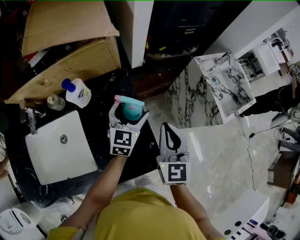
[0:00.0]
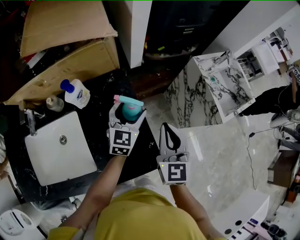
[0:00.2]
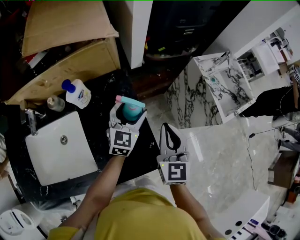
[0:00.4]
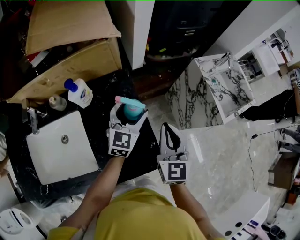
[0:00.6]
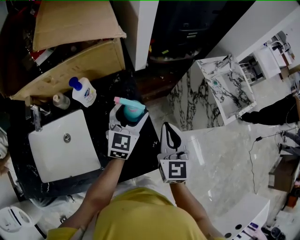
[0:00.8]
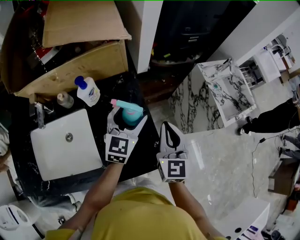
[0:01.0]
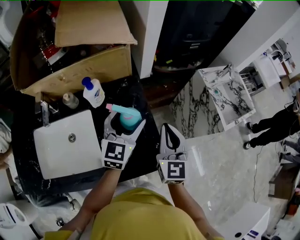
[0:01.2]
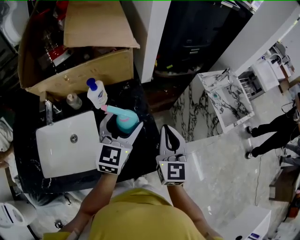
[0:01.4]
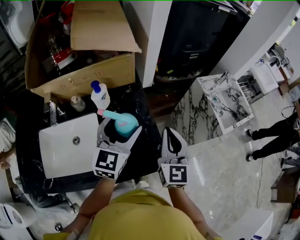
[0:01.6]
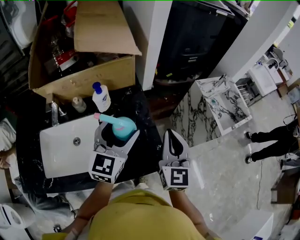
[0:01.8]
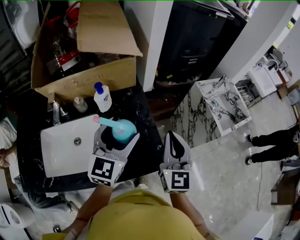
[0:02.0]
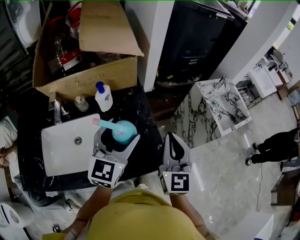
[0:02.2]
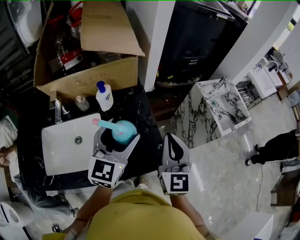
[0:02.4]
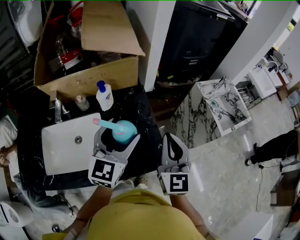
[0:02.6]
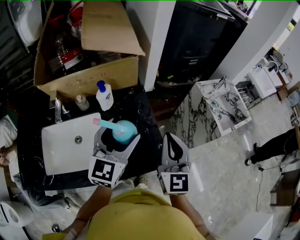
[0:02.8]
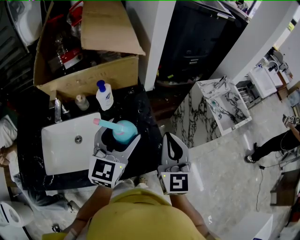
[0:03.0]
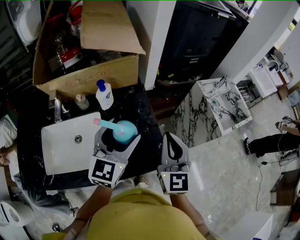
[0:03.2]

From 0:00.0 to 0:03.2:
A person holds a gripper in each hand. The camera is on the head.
From 0:00.0 to 0:01.6: The right gripper shifts approximately 5 cm upward, while the left gripper moves upward, backward and to the left, approximately 20 cm.
From 0:01.6 to 0:03.2: The right gripper ends up approximately 5 cm from where it was. The left gripper is displaced backward by some 5 cm.

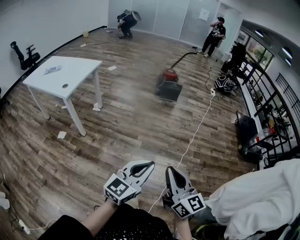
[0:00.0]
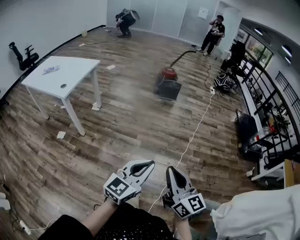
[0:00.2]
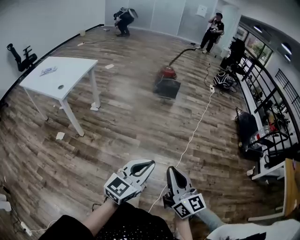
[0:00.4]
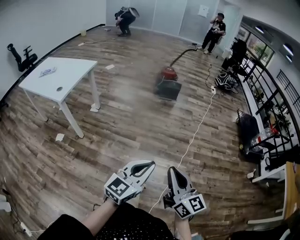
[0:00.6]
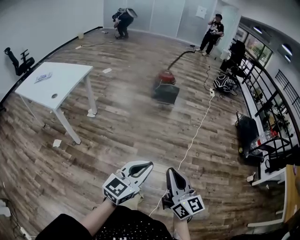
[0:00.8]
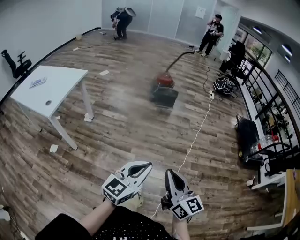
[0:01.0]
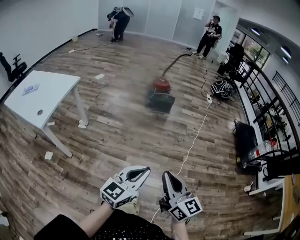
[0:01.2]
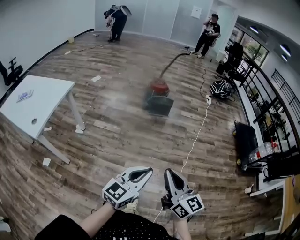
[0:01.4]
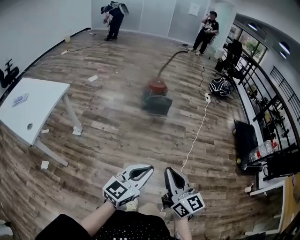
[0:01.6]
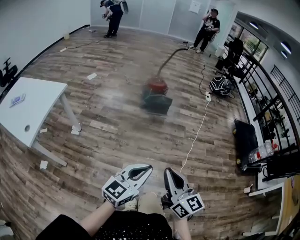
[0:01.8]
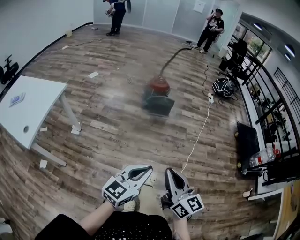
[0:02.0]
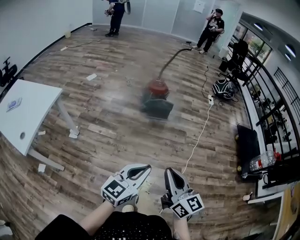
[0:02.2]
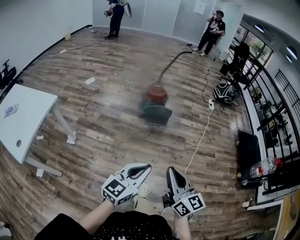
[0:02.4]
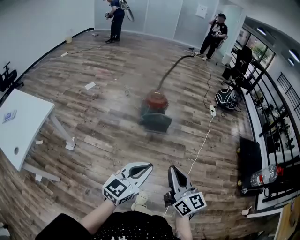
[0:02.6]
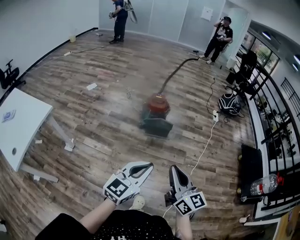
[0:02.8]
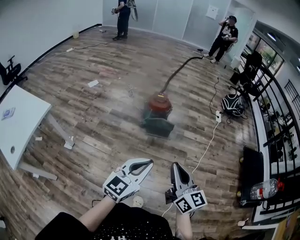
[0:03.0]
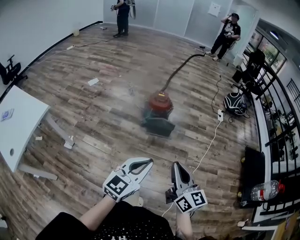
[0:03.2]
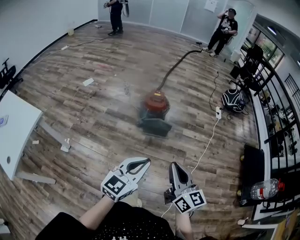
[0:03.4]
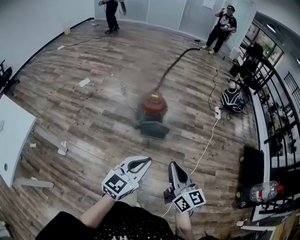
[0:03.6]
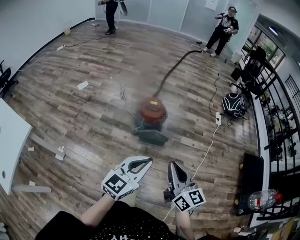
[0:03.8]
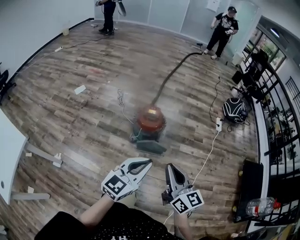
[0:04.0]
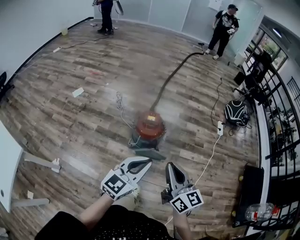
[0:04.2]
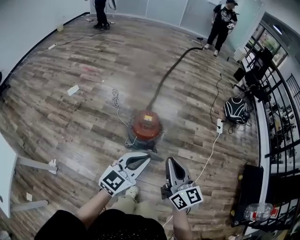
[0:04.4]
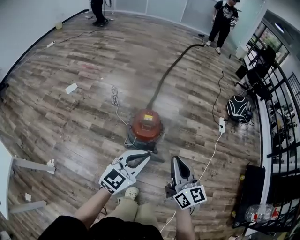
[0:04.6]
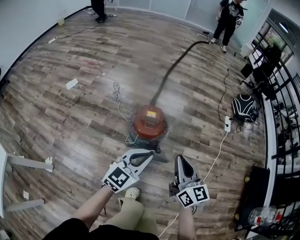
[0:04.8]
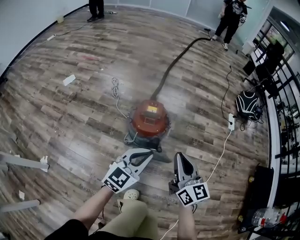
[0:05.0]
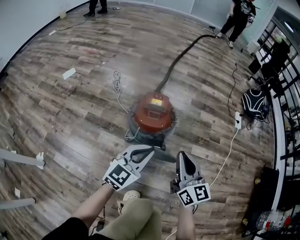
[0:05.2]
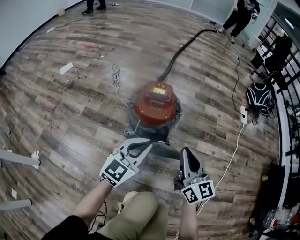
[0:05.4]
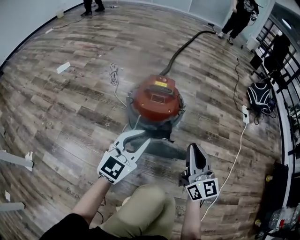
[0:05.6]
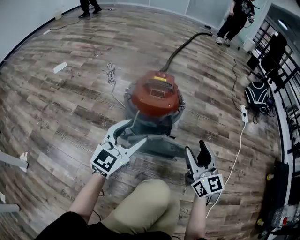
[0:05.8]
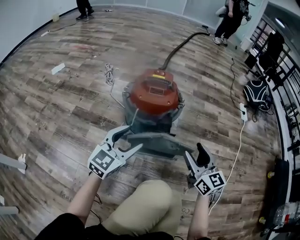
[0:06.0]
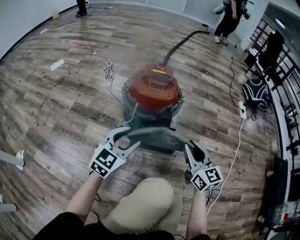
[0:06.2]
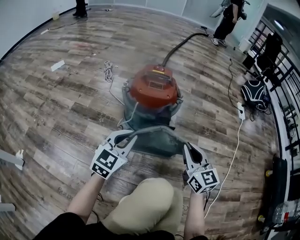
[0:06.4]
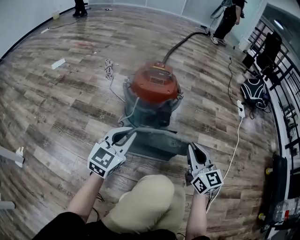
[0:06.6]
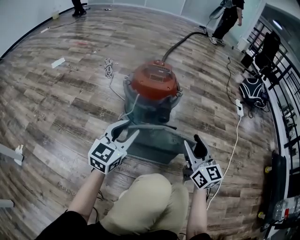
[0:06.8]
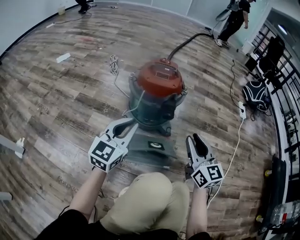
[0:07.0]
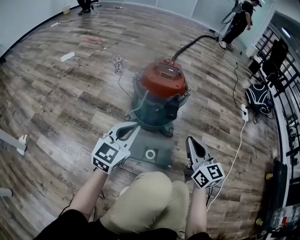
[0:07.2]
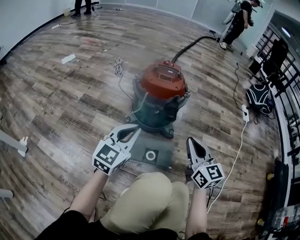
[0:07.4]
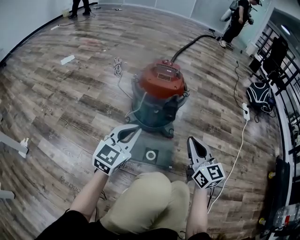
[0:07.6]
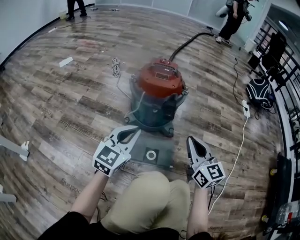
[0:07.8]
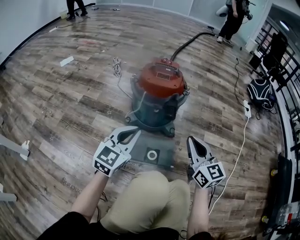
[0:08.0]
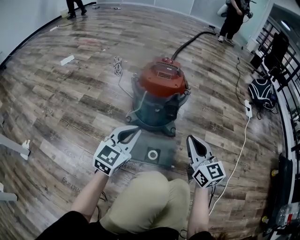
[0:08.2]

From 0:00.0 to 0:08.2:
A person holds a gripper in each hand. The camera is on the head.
From 0:00.0 to 0:01.6: Both grippers move forward, about 40 cm.
From 0:01.6 to 0:03.2: The two grippers travel together, forward, some 40 cm.
From 0:03.2 to 0:05.0: The two grippers travel together, forward, about 50 cm. The grippers both shift downward by about 20 cm.
From 0:05.0 to 0:06.6: The two grippers go approximately 30 cm downward. The right gripper opens, then closes once more. Meanwhile the left gripper opens, then closes again.
From 0:06.6 to 0:08.2: The right gripper opens, then closes once more.

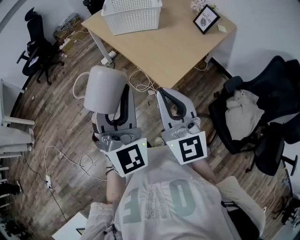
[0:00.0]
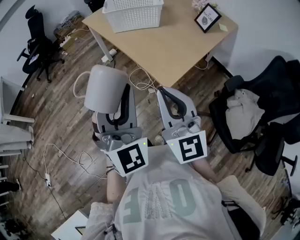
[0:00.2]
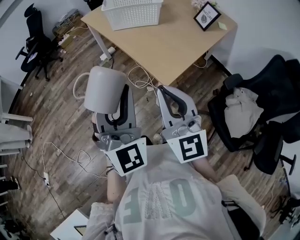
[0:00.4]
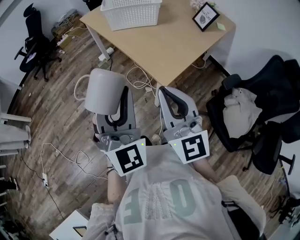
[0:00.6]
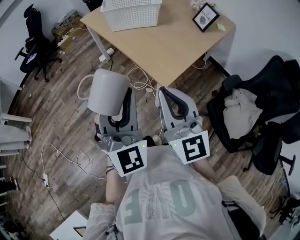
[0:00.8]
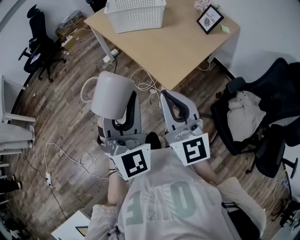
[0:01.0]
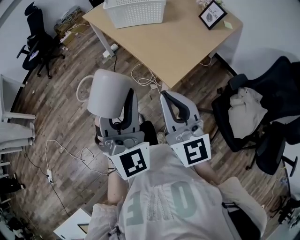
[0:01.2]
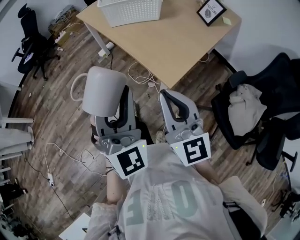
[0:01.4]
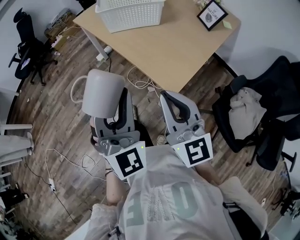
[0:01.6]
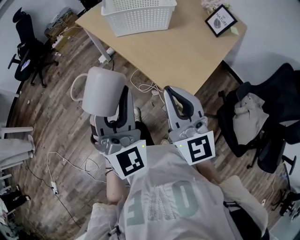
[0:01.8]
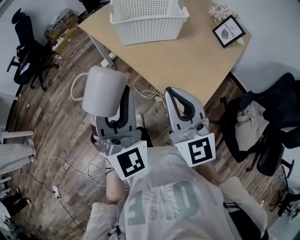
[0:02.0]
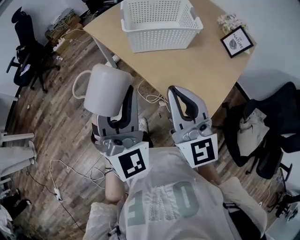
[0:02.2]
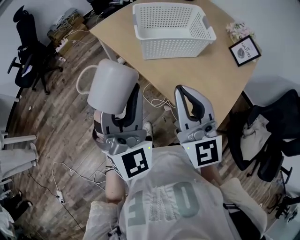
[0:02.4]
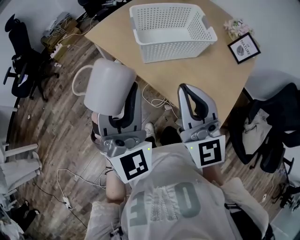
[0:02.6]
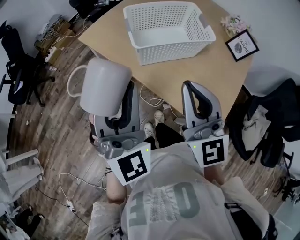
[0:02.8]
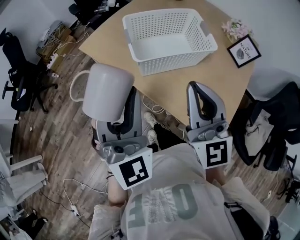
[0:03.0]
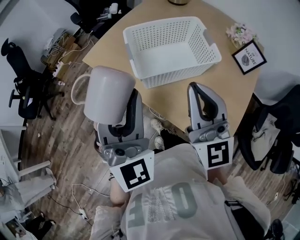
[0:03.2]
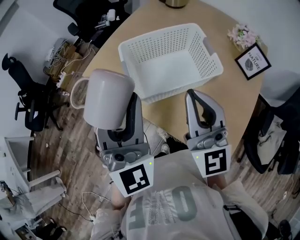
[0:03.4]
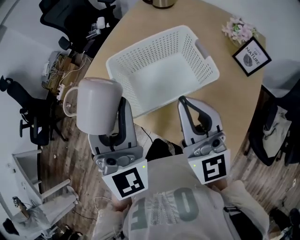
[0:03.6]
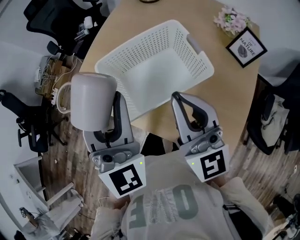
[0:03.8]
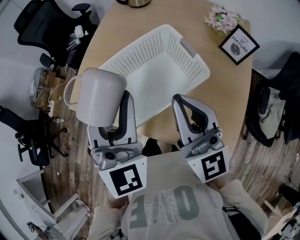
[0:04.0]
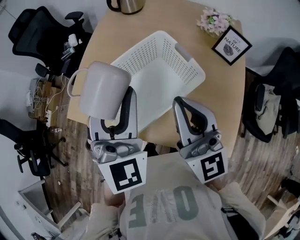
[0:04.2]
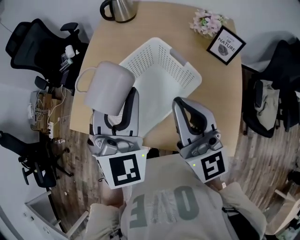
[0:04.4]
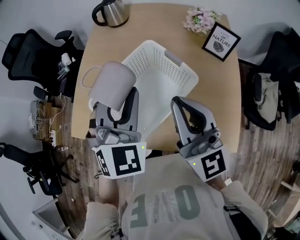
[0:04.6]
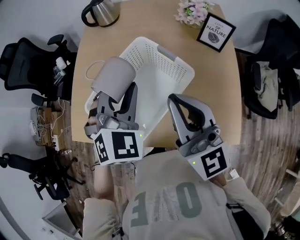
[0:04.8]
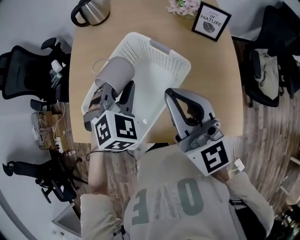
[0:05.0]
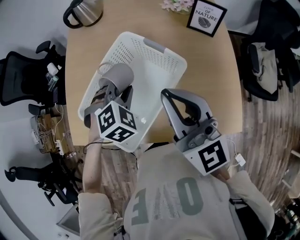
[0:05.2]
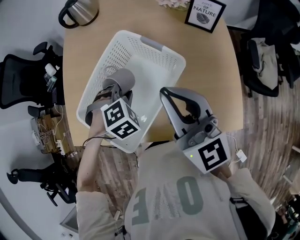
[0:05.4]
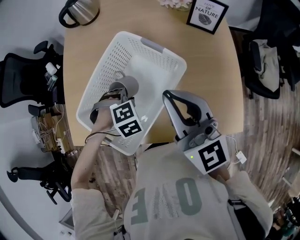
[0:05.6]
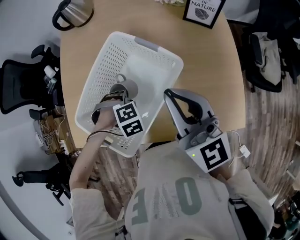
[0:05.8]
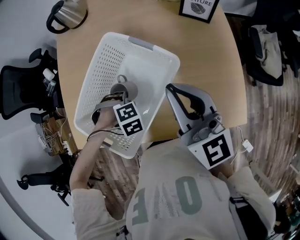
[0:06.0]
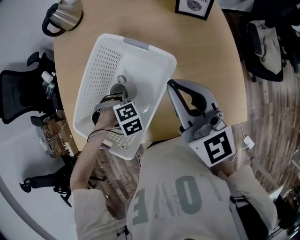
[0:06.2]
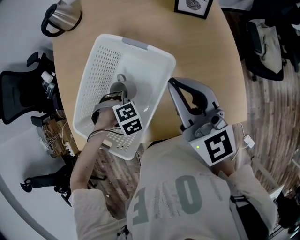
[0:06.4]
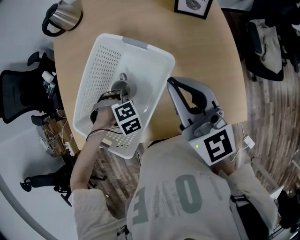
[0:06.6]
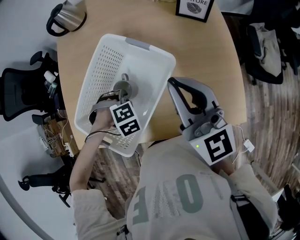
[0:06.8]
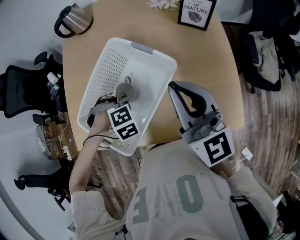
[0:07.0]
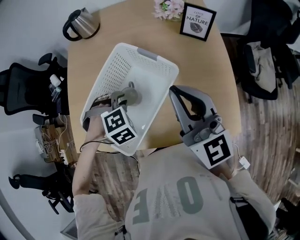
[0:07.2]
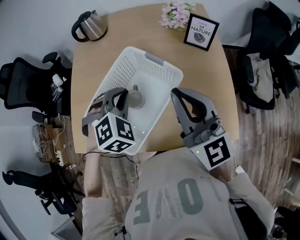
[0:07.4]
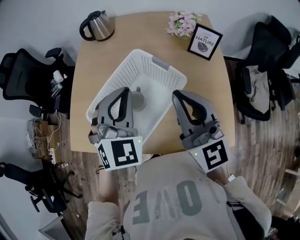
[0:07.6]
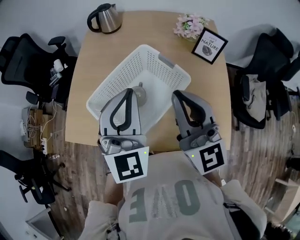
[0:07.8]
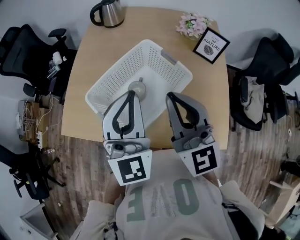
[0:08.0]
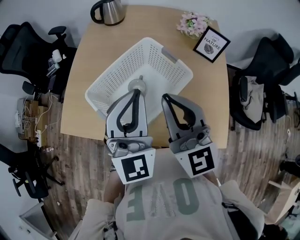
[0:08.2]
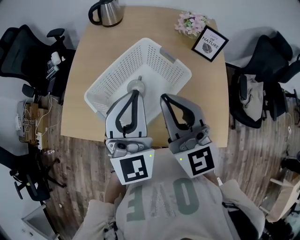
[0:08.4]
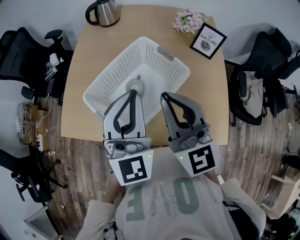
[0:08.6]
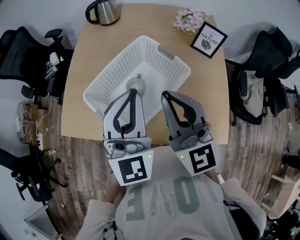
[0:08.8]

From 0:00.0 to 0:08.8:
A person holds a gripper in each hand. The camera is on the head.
From 0:00.0 to 0:01.4: The grippers make only small movements.
From 0:01.4 to 0:03.0: The two grippers travel together, forward, approximately 40 cm.
From 0:03.0 to 0:04.4: The left gripper changes place by approximately 30 cm, and swivels some 30 degrees, while the right gripper shifts by approximately 20 cm, and swivels roughly 20 degrees.
From 0:04.4 to 0:05.8: The left gripper moves downward, approximately 35 cm, and angles its fingers downward, by some 70 degrees. The right gripper moves downward, some 5 cm.
From 0:05.8 to 0:07.4: The left gripper travels upward by roughly 20 cm, and angles its fingers upward, by about 40 degrees, while the right gripper heads upward, covering approximately 5 cm.
From 0:07.4 to 0:08.8: The left gripper shifts about 15 cm upward and backward, and tips its fingers upward by approximately 50 degrees; the right gripper moves to the left, about 5 cm.

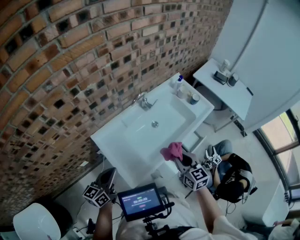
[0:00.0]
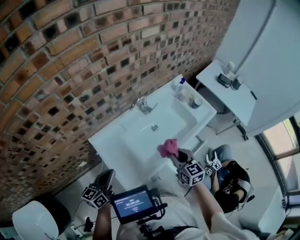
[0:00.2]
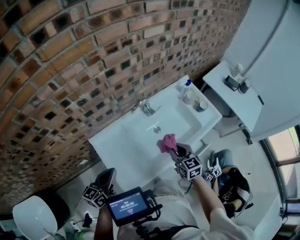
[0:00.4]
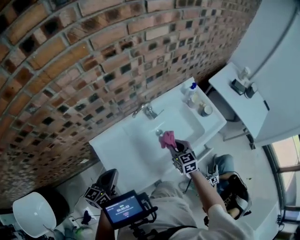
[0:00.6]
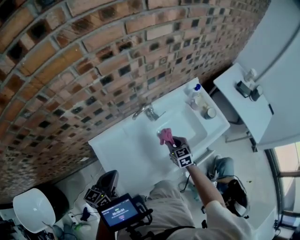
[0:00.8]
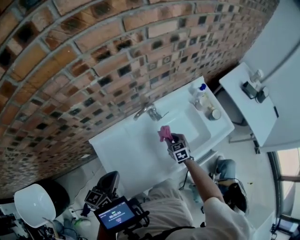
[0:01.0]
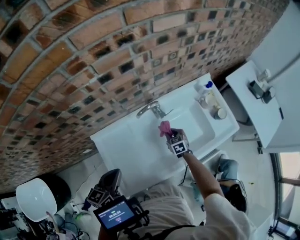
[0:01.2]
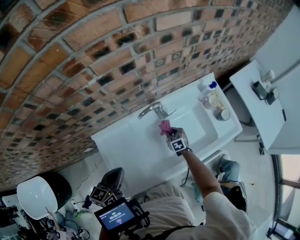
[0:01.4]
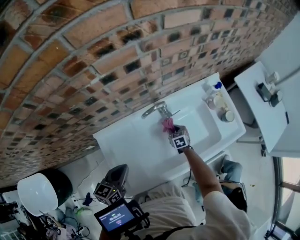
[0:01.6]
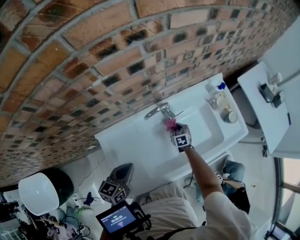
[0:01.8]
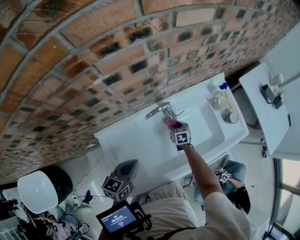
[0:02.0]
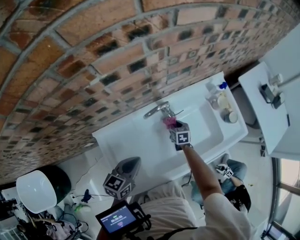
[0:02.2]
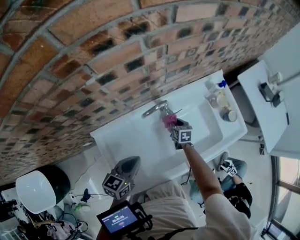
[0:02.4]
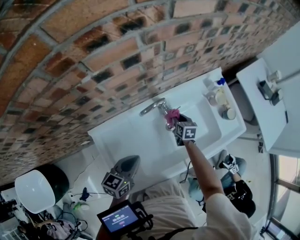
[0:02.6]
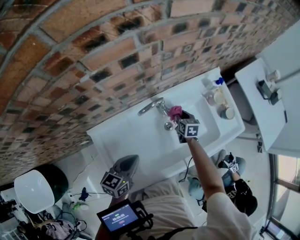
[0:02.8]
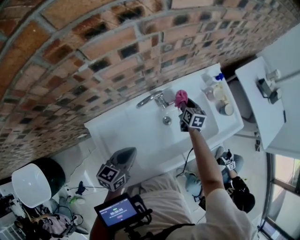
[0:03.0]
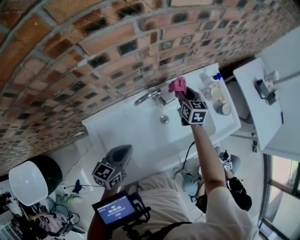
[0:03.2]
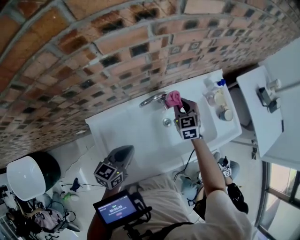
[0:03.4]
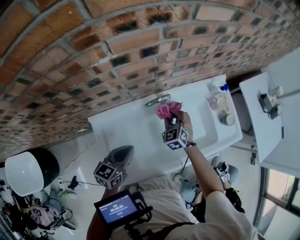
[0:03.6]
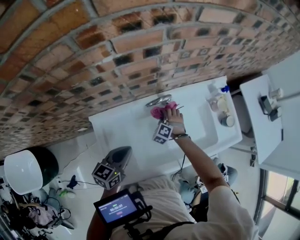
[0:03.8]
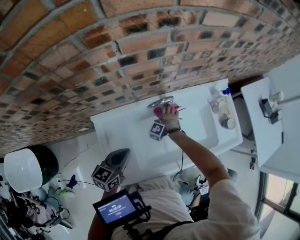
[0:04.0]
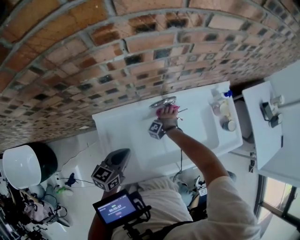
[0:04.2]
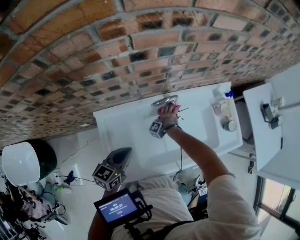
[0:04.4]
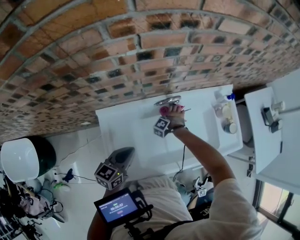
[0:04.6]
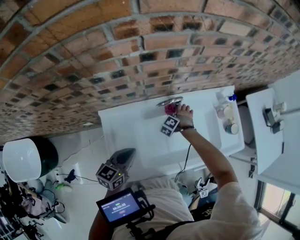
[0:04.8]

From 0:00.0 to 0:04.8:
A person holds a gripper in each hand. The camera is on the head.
From 0:00.0 to 0:01.6: The left gripper travels forward, downward and to the right by some 20 cm, and rotates roughly 20 degrees. Meanwhile the right gripper shifts approximately 50 cm downward and forward, and changes its angle by some 30 degrees.
From 0:01.6 to 0:03.2: The left gripper heads to the right and forward, covering about 10 cm; the right gripper shifts about 25 cm upward and forward, and turns by approximately 30 degrees.
From 0:03.2 to 0:04.8: The right gripper heads downward, backward and to the left, covering about 20 cm, and rotates around the line of its fingers by approximately 80 degrees, counterclockwise from behind. Meanwhile the left gripper is displaced backward by roughly 5 cm.
